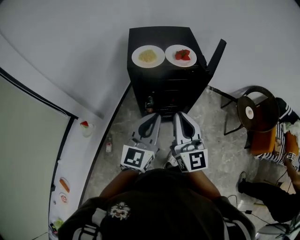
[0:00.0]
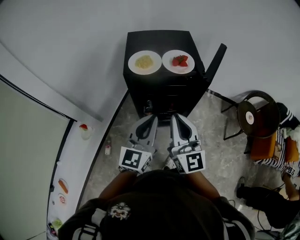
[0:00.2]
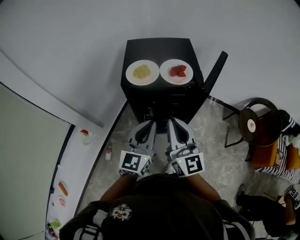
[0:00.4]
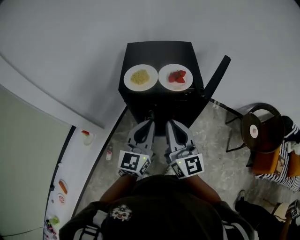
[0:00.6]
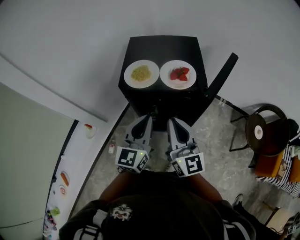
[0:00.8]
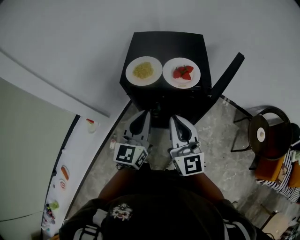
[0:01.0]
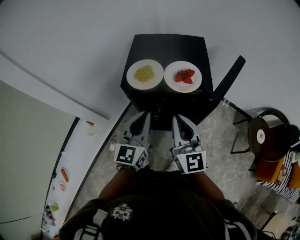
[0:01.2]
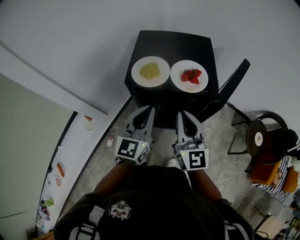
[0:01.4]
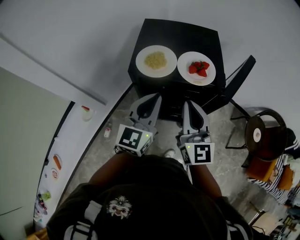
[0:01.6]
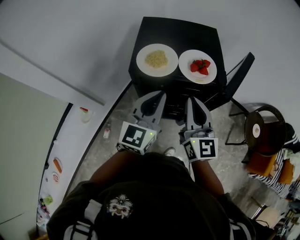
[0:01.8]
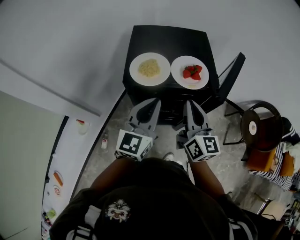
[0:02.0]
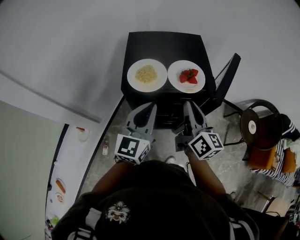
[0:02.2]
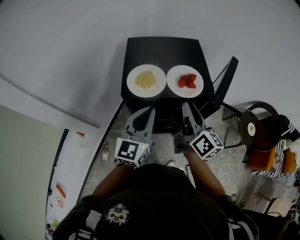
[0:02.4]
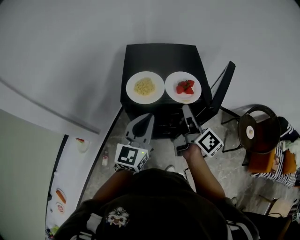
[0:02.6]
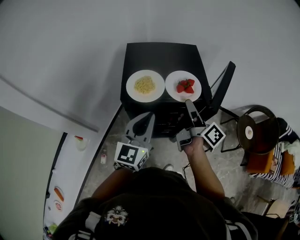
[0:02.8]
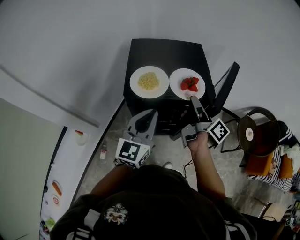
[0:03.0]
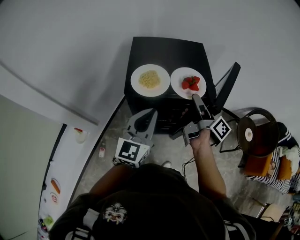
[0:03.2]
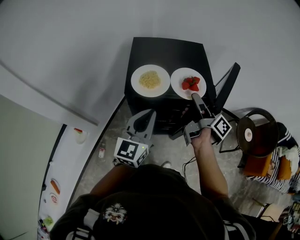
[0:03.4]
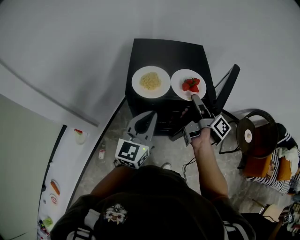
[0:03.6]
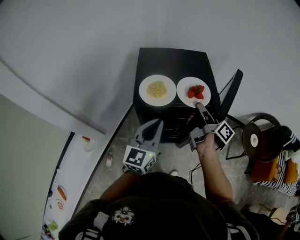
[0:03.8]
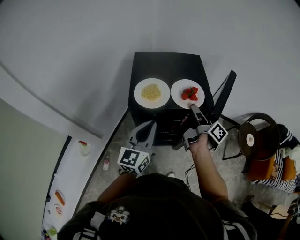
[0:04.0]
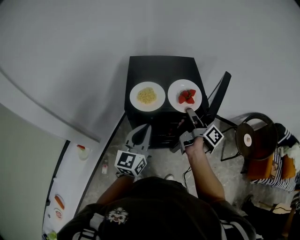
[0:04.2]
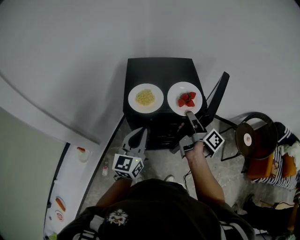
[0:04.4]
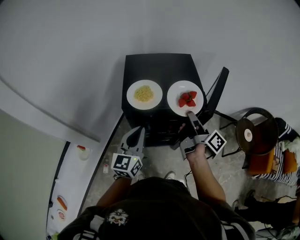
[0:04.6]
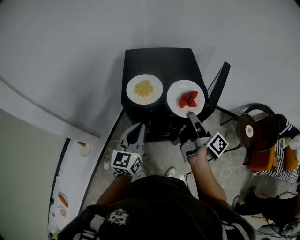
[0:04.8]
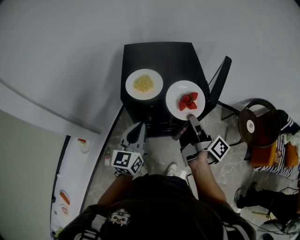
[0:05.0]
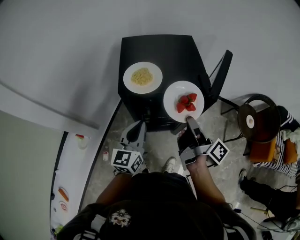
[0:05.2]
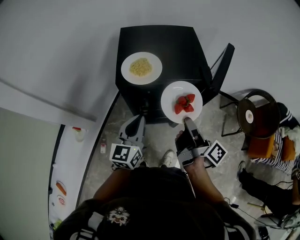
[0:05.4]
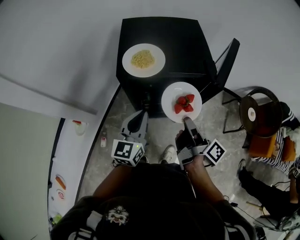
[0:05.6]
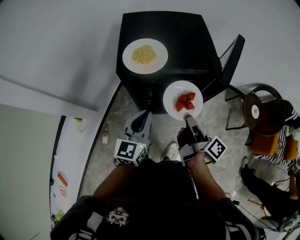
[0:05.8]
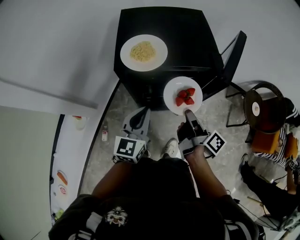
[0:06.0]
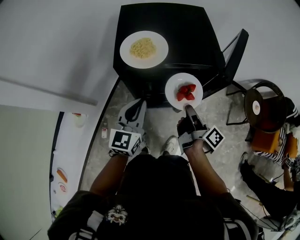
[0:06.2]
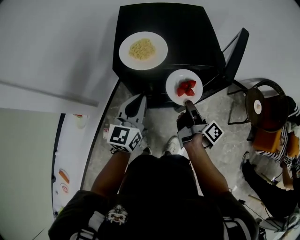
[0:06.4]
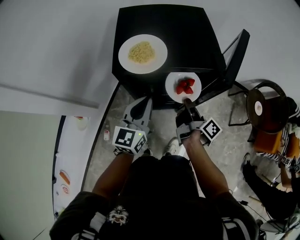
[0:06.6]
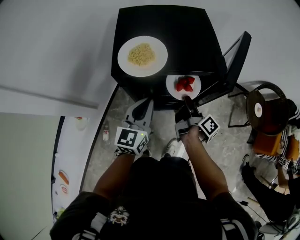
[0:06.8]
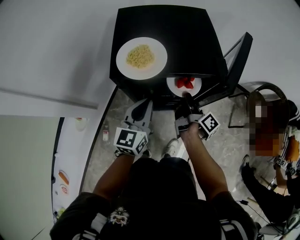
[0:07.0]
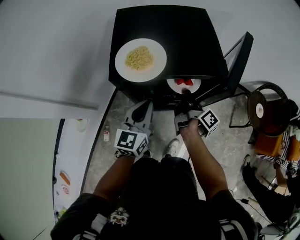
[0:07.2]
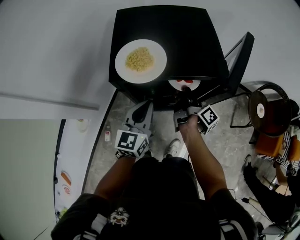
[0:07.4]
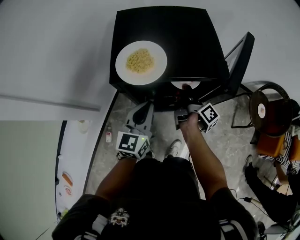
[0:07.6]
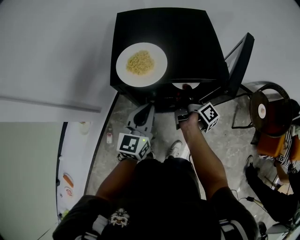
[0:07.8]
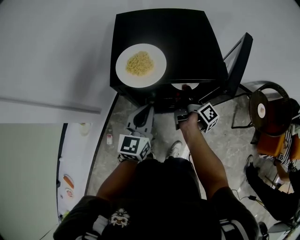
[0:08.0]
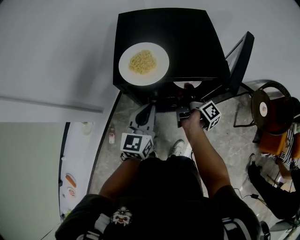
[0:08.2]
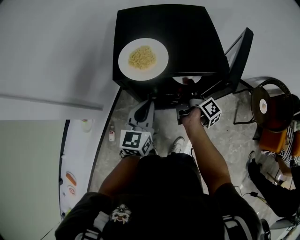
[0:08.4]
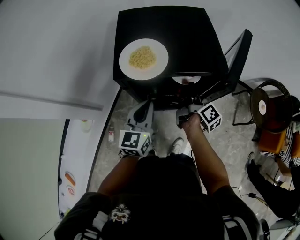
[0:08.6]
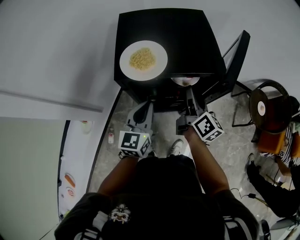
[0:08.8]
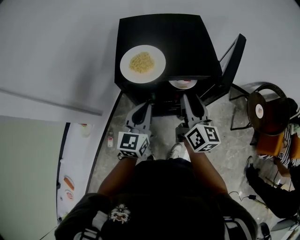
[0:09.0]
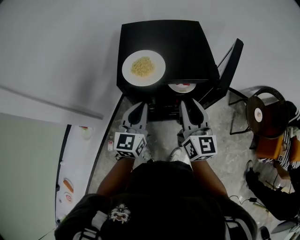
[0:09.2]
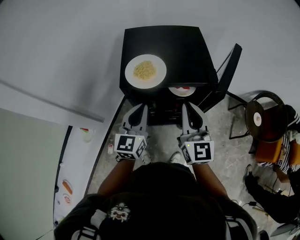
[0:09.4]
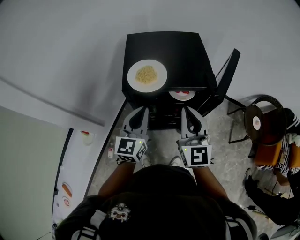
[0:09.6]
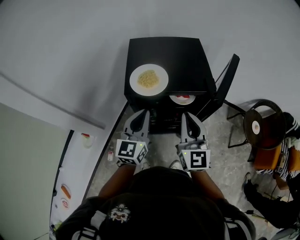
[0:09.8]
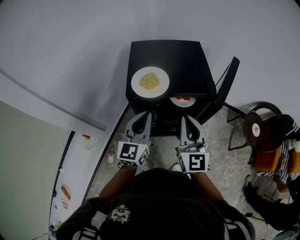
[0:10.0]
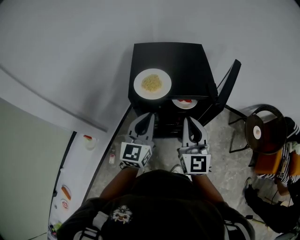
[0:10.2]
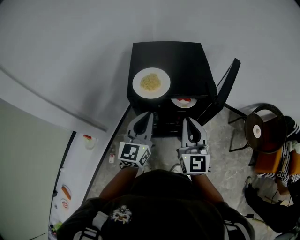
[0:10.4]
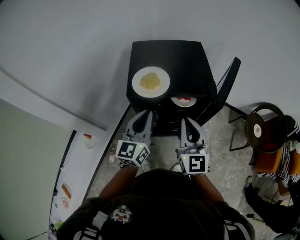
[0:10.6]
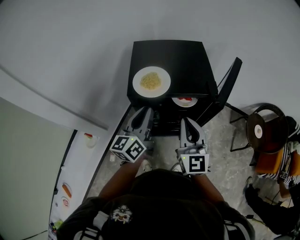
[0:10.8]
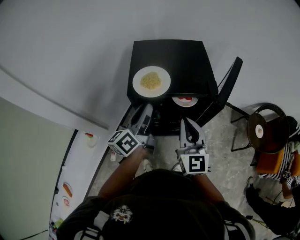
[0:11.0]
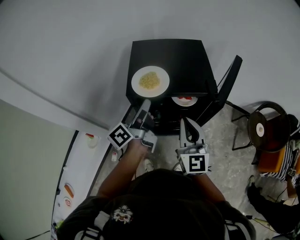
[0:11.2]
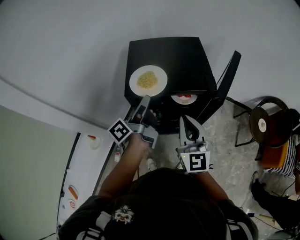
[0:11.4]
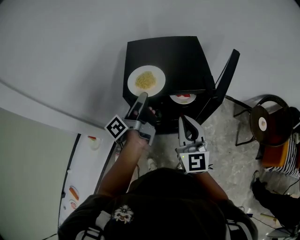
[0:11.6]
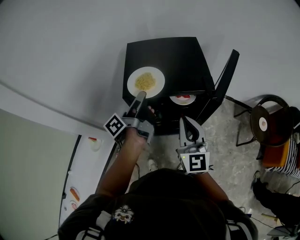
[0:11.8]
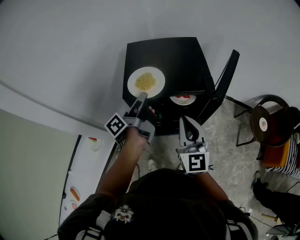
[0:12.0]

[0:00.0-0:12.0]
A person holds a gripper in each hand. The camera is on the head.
0:00.0 to 0:01.6: The two grippers go some 15 cm forward.
0:01.6 to 0:03.0: The right gripper heads forward, covering approximately 10 cm, rolls clockwise, seen from behind, by approximately 80 degrees, and opens up.
0:03.0 to 0:04.4: The right gripper closes up.
0:04.4 to 0:06.0: The left gripper heads downward, covering some 10 cm, while the right gripper shifts some 15 cm downward and backward.
0:06.0 to 0:07.6: The left gripper is displaced forward by some 5 cm. The right gripper is displaced forward and downward by roughly 15 cm.
0:07.6 to 0:09.0: The right gripper shifts some 15 cm upward and backward, twists roughly 60 degrees counterclockwise, seen from behind, and opens up.
0:09.0 to 0:10.4: The right gripper goes about 10 cm upward and backward, rotates approximately 30 degrees, and closes; the left gripper travels upward by roughly 10 cm.
0:10.4 to 0:12.0: The left gripper travels forward by roughly 10 cm, and rolls counterclockwise, seen from behind, by approximately 80 degrees.

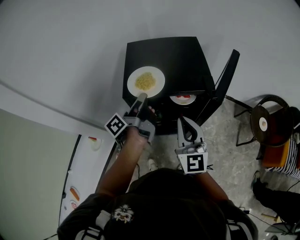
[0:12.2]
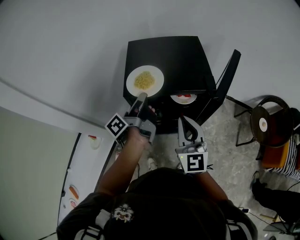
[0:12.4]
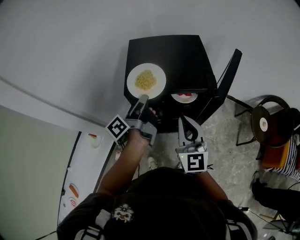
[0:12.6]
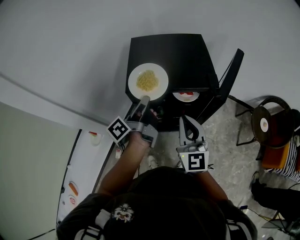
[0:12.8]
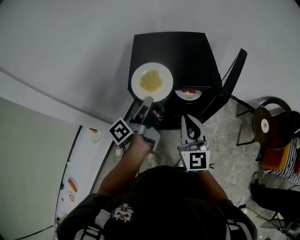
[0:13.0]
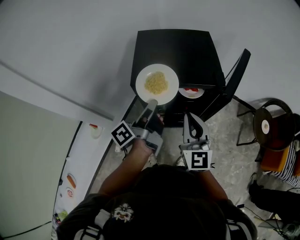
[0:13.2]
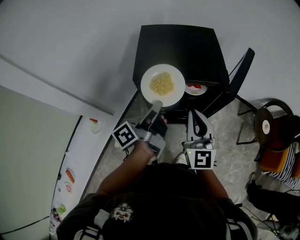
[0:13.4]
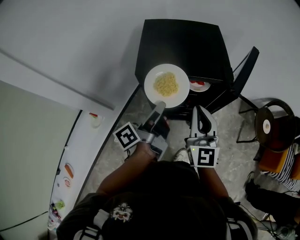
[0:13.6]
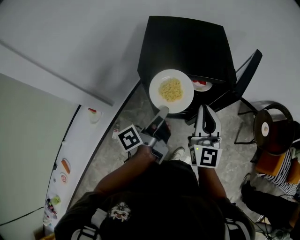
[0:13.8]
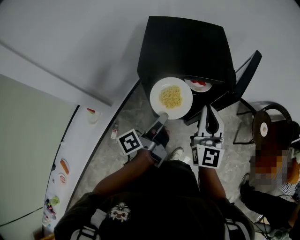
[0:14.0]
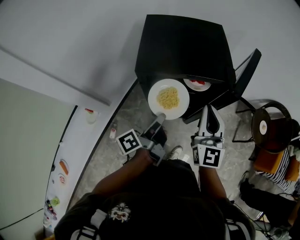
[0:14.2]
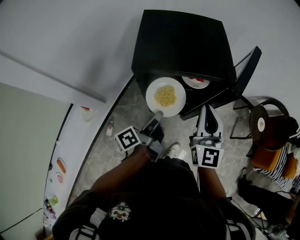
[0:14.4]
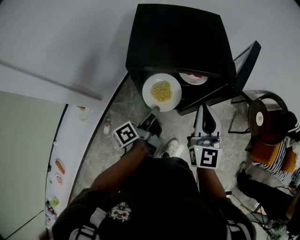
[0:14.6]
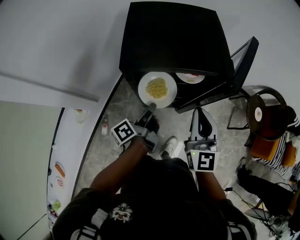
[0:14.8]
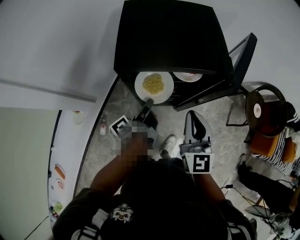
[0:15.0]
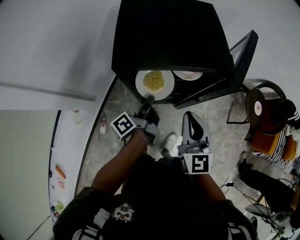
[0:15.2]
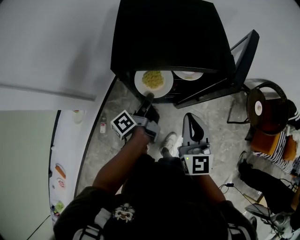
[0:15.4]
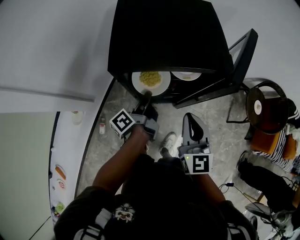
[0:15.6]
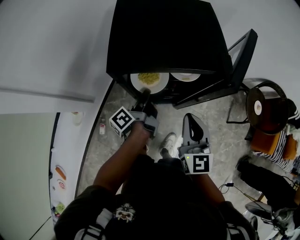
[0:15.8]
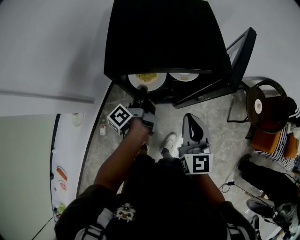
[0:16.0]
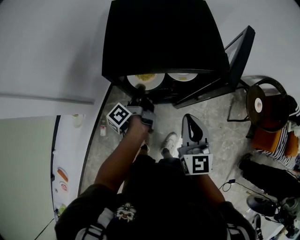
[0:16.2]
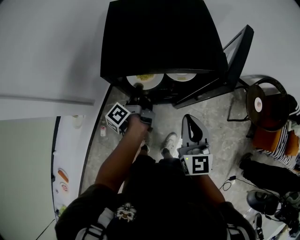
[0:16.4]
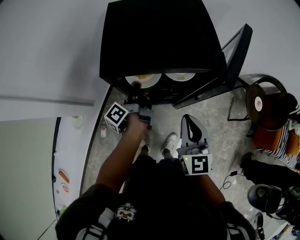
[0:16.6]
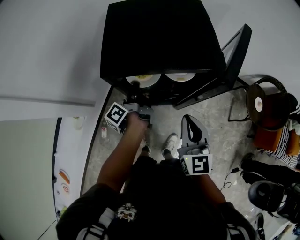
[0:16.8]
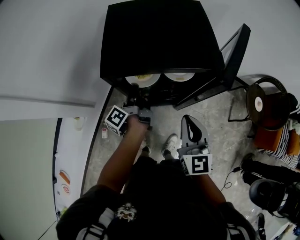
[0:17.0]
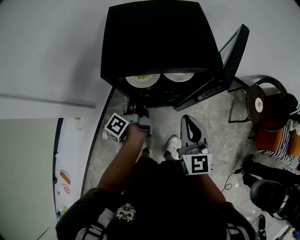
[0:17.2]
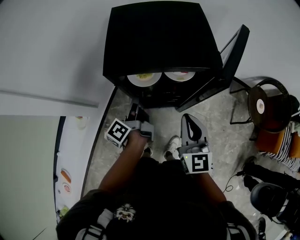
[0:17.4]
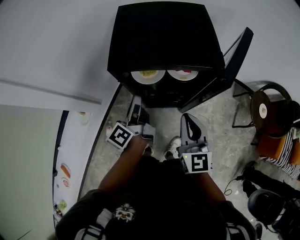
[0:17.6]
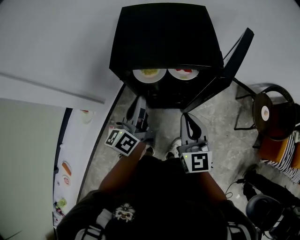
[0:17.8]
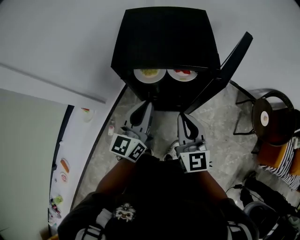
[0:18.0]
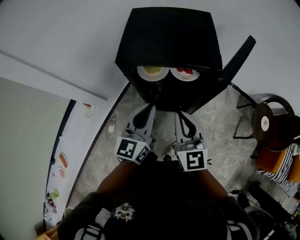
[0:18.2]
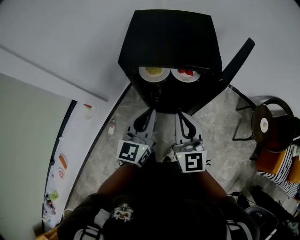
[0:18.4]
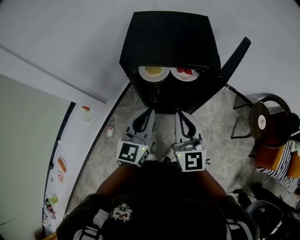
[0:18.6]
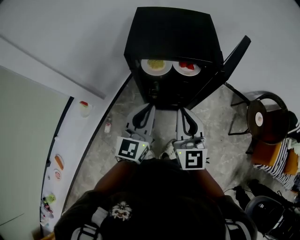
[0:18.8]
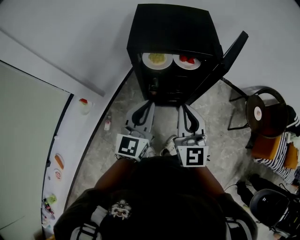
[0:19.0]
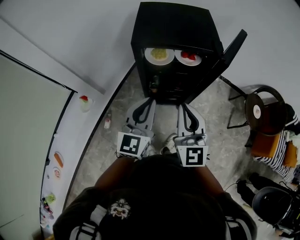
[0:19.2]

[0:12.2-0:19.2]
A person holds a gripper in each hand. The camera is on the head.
0:12.2 to 0:13.6: The left gripper heads backward, covering approximately 10 cm.
0:13.6 to 0:15.0: The left gripper goes about 15 cm downward, while the right gripper is displaced downward by approximately 5 cm.
0:15.0 to 0:16.4: The left gripper shifts some 5 cm forward.
0:16.4 to 0:17.8: The left gripper shifts roughly 15 cm upward and backward, and rotates around the line of its fingers by about 40 degrees, clockwise from behind.
0:17.8 to 0:19.2: The left gripper is displaced backward by approximately 15 cm, and twists some 40 degrees clockwise, seen from behind. The right gripper heads backward, upward and to the left, covering about 15 cm.

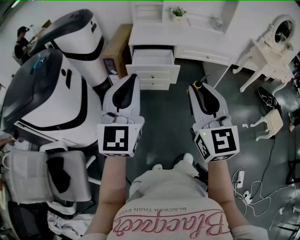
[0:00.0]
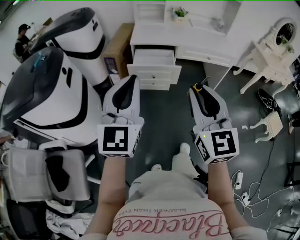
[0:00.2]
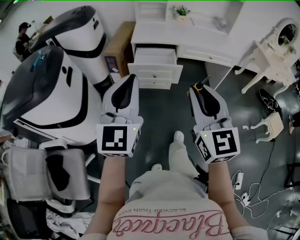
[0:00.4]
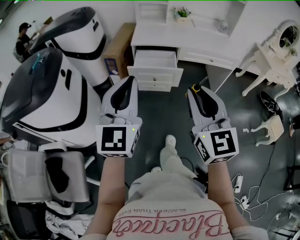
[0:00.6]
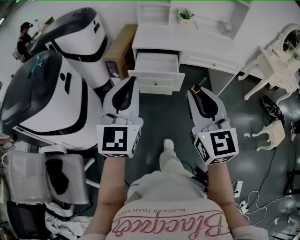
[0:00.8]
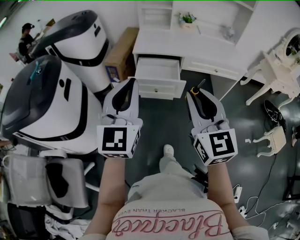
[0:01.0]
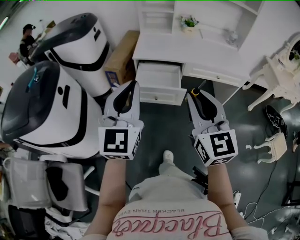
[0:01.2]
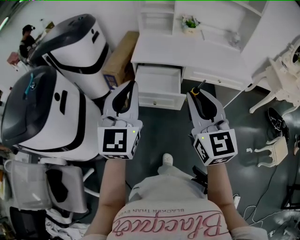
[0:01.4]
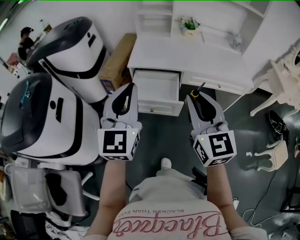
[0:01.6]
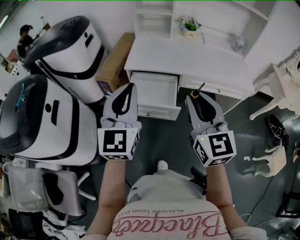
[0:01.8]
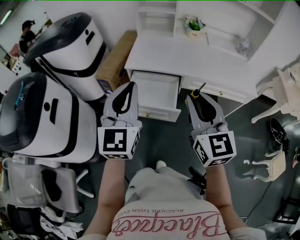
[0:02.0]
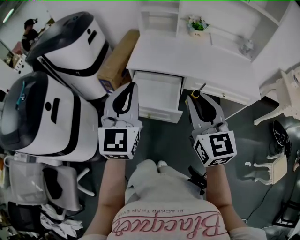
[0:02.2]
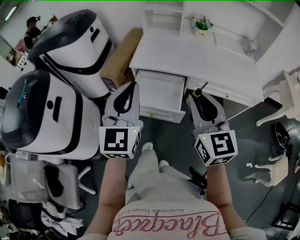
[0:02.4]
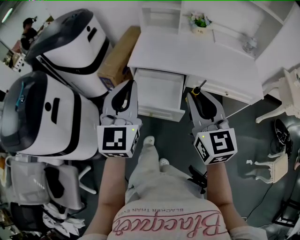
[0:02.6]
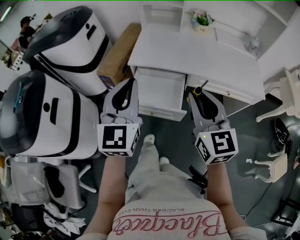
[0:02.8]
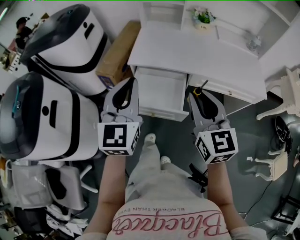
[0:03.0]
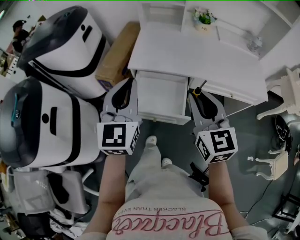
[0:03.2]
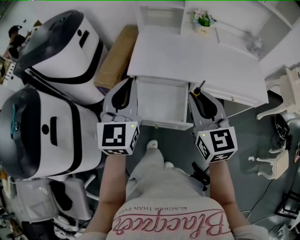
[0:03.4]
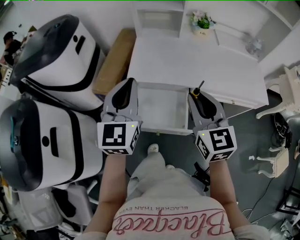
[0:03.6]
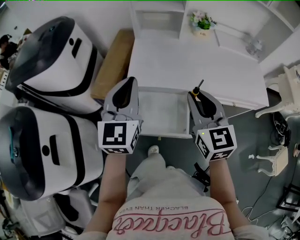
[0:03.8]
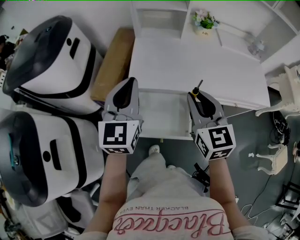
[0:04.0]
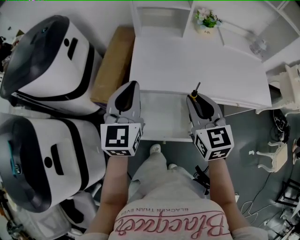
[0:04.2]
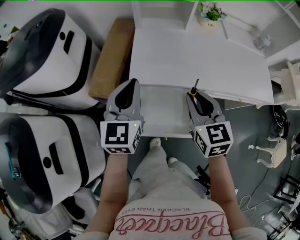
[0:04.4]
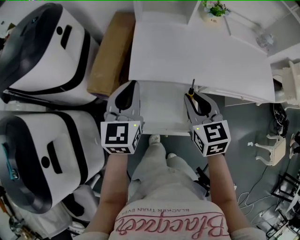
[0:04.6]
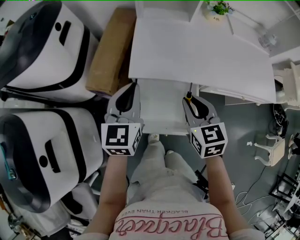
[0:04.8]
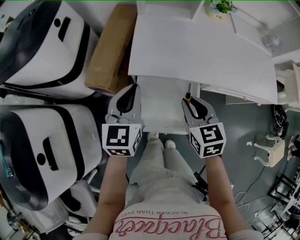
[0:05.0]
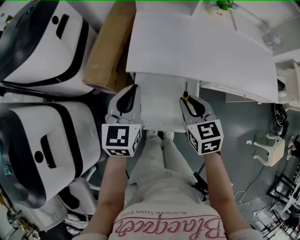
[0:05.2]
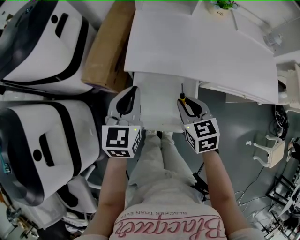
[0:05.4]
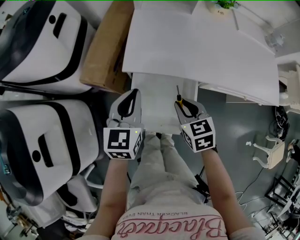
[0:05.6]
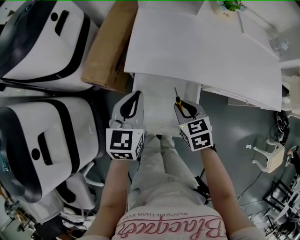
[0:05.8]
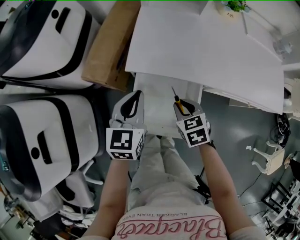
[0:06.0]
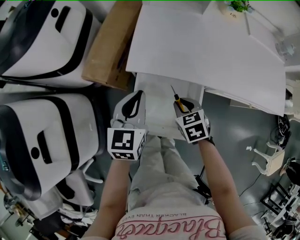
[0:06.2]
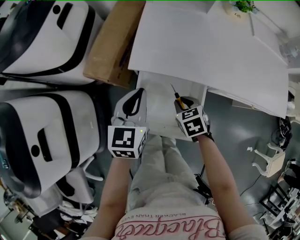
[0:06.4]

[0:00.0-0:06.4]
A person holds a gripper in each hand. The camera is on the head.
0:00.0 to 0:01.6: Both grippers move forward, about 25 cm.
0:01.6 to 0:03.2: The two grippers go about 15 cm forward.
0:03.2 to 0:04.8: The right gripper is displaced forward, downward and to the left by roughly 20 cm, and swivels approximately 20 degrees. The left gripper is displaced forward and downward by approximately 20 cm.
0:04.8 to 0:06.4: The left gripper shifts some 10 cm downward; the right gripper travels downward by some 20 cm, and swivels approximately 30 degrees.
